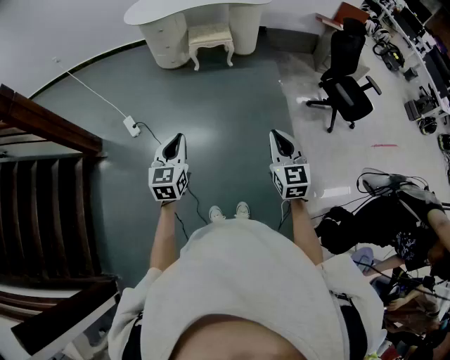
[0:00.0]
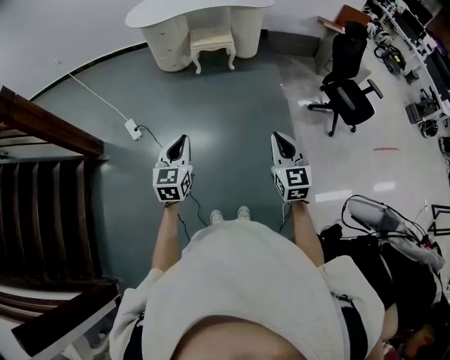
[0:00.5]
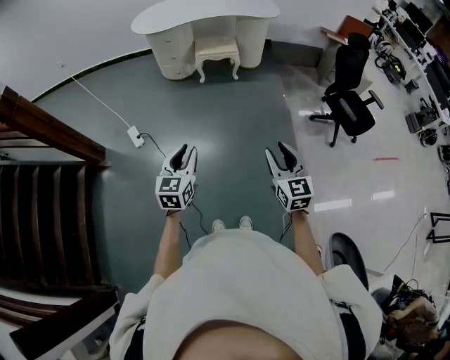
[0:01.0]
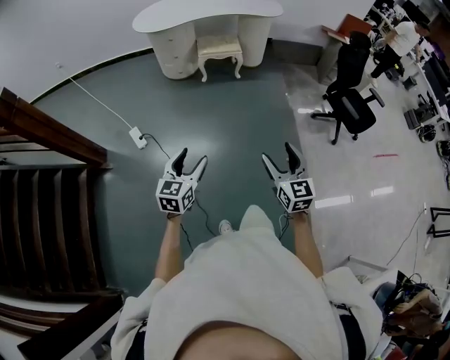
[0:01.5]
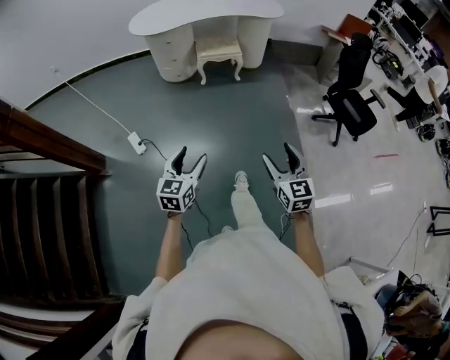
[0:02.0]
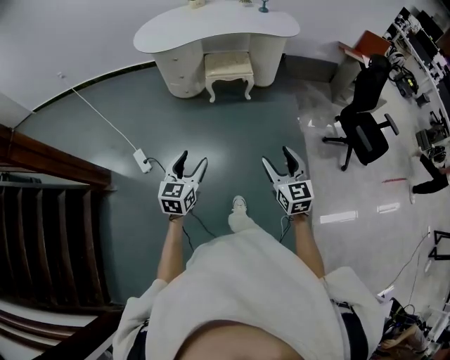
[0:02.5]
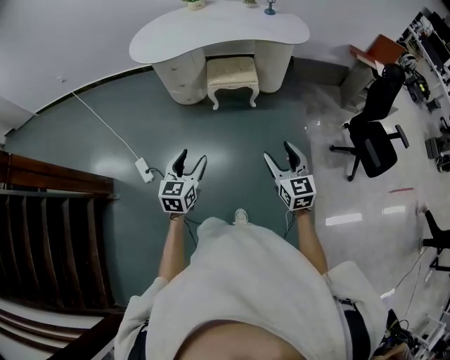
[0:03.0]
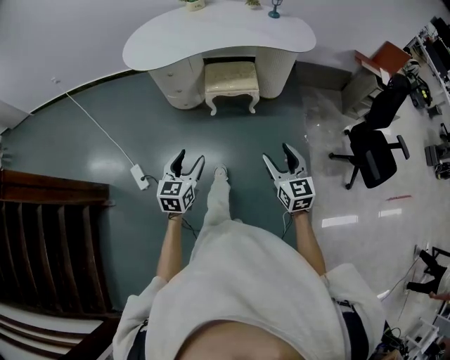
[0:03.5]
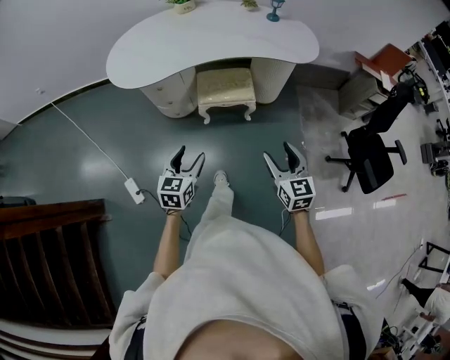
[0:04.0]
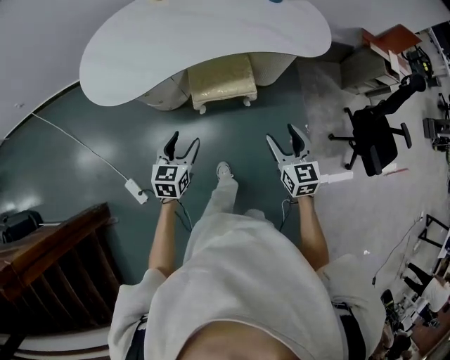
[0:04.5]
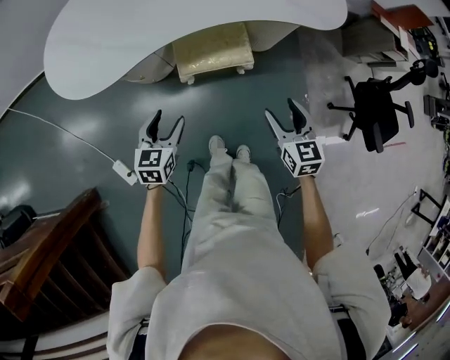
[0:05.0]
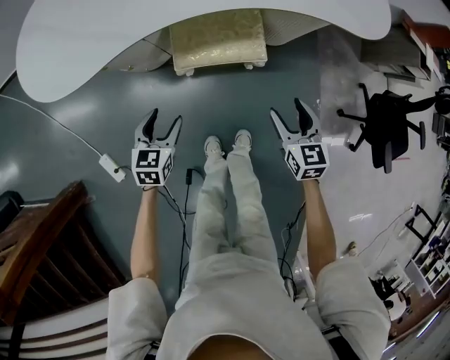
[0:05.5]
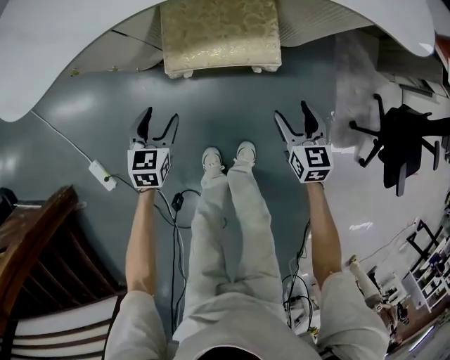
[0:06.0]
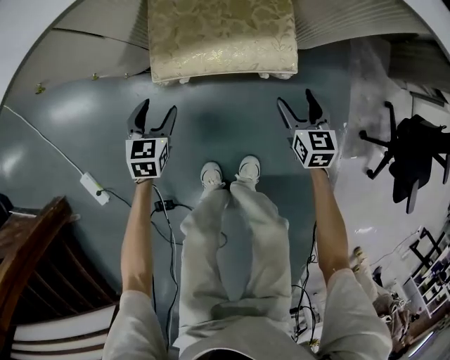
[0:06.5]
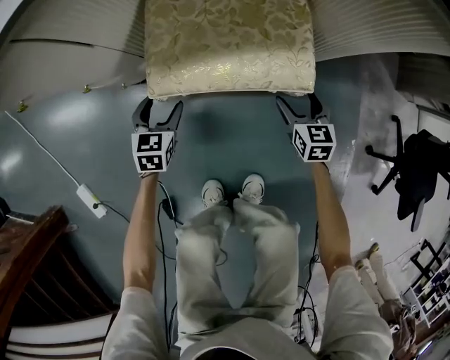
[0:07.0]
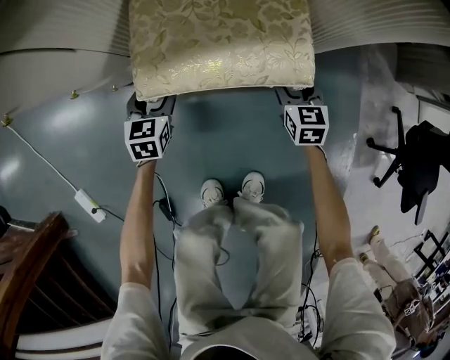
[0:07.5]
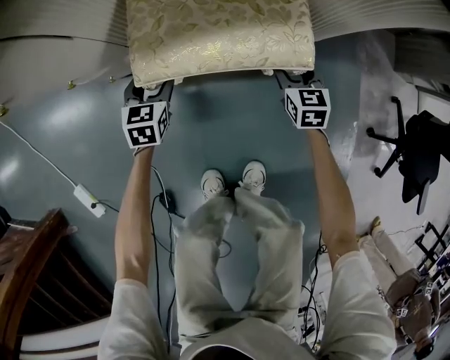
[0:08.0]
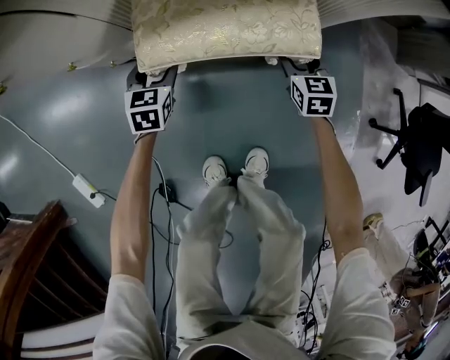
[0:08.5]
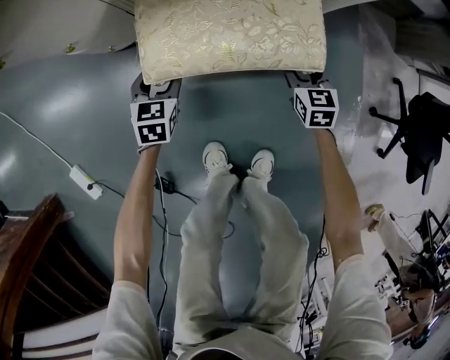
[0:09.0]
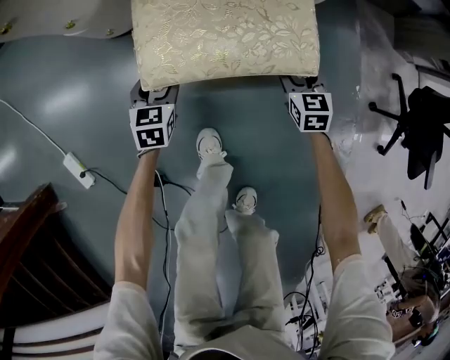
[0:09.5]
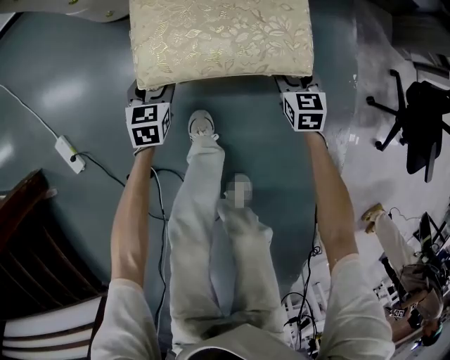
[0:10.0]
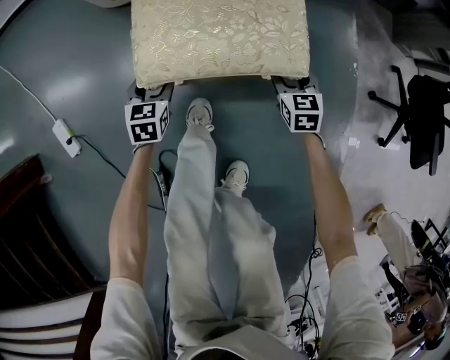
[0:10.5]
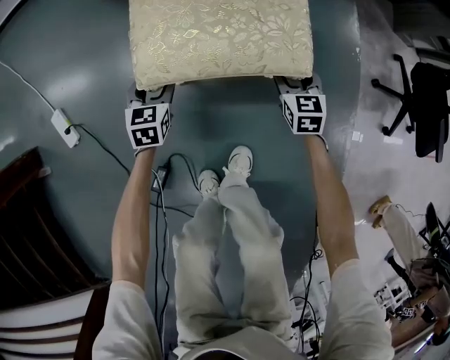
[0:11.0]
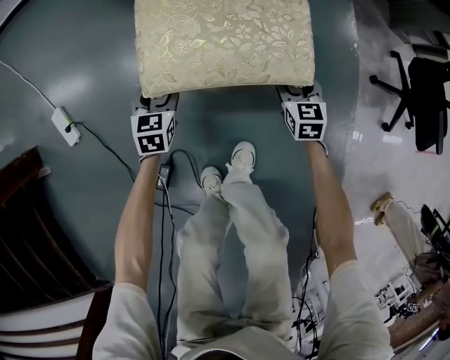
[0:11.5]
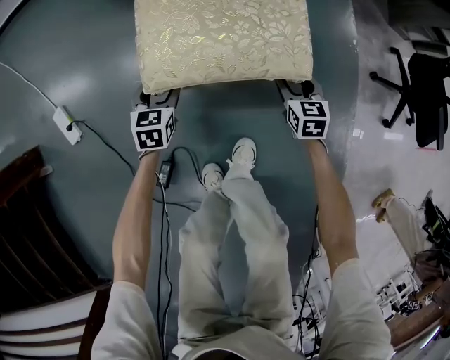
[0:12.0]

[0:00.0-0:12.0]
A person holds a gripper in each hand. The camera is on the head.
0:00.0 to 0:02.0: The left gripper moves forward and to the left, approximately 15 cm, and opens up. The right gripper heads to the left and forward, covering approximately 15 cm, and opens its fingers.
0:02.0 to 0:04.0: The pair of grippers is taken forward, approximately 70 cm.
0:04.0 to 0:06.0: The grippers both shift downward and forward by approximately 60 cm.
0:06.0 to 0:08.0: The grippers both shift downward and forward by roughly 30 cm.
0:08.0 to 0:10.0: Both grippers travel together backward, roughly 30 cm.
0:10.0 to 0:12.0: There are only small adjustments of the grippers.

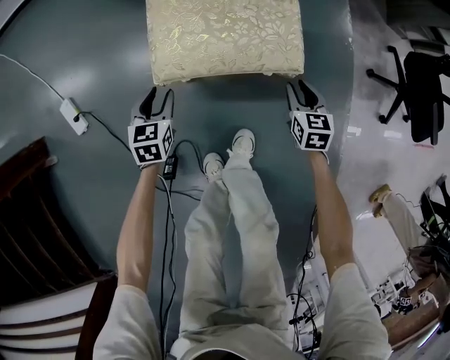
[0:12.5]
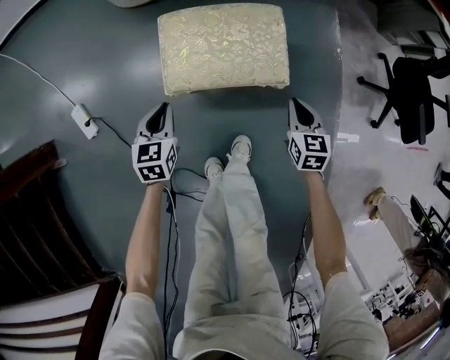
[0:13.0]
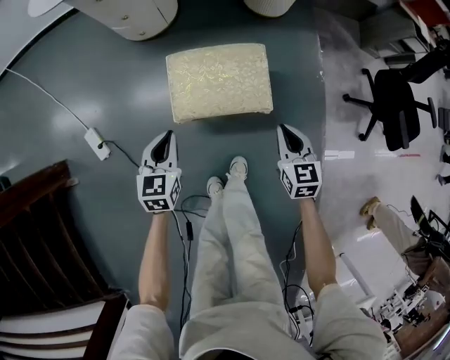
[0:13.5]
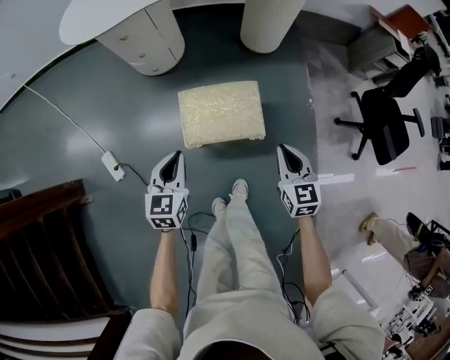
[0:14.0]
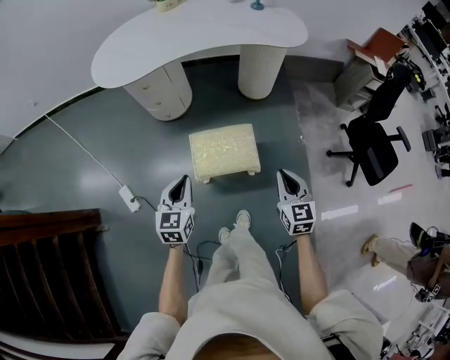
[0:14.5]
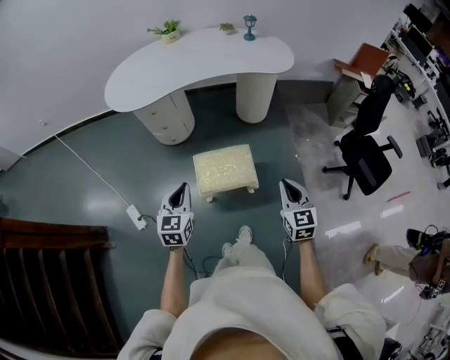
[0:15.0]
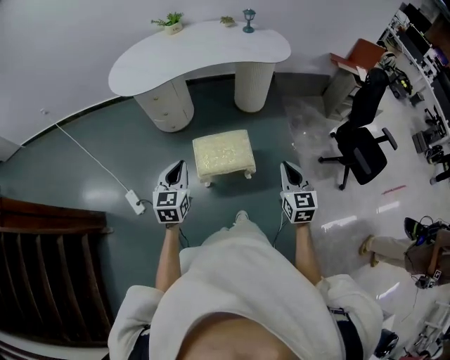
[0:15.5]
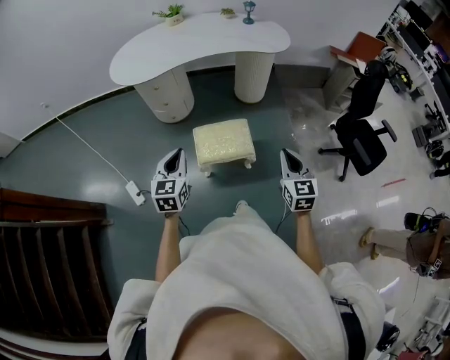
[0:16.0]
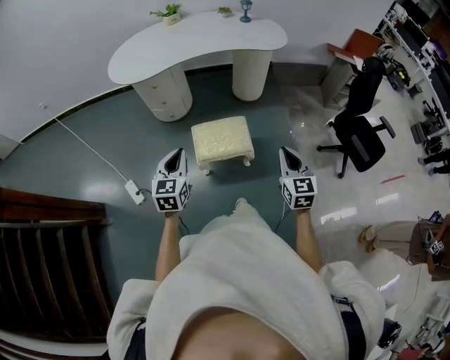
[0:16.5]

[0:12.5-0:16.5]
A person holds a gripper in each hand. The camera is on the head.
0:12.5 to 0:14.5: The grippers both shift upward by roughly 50 cm. The right gripper swivels about 20 degrees, while the left gripper closes its fingers.
0:14.5 to 0:16.5: Both grippers travel together upward and backward, some 15 cm.

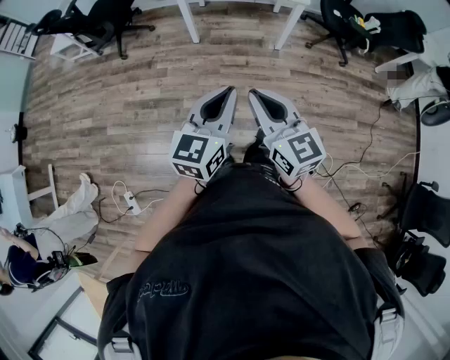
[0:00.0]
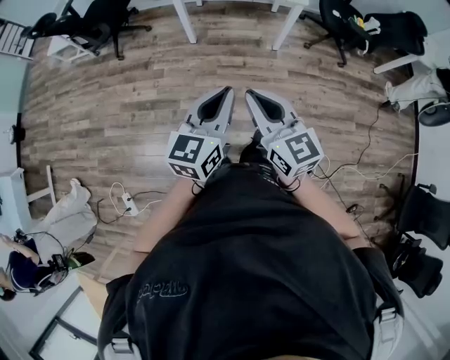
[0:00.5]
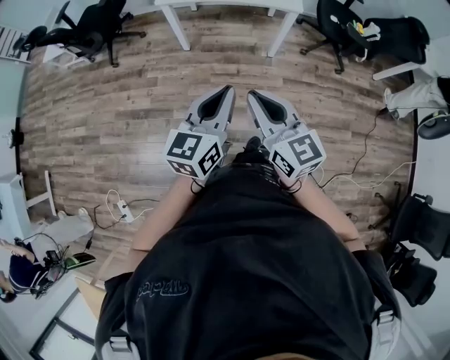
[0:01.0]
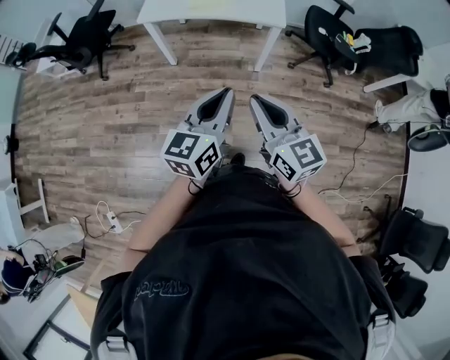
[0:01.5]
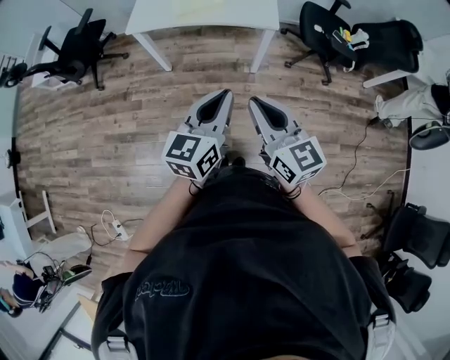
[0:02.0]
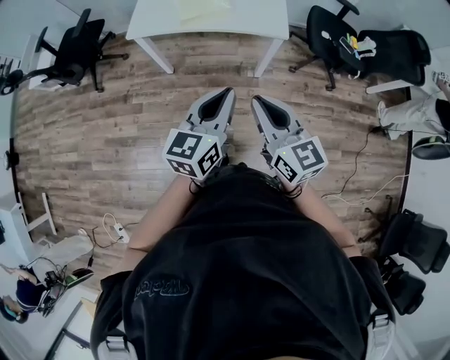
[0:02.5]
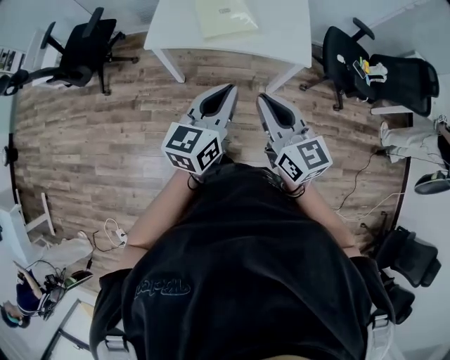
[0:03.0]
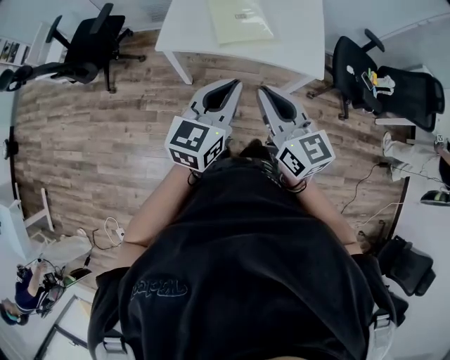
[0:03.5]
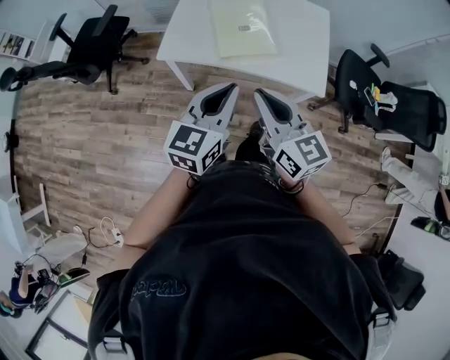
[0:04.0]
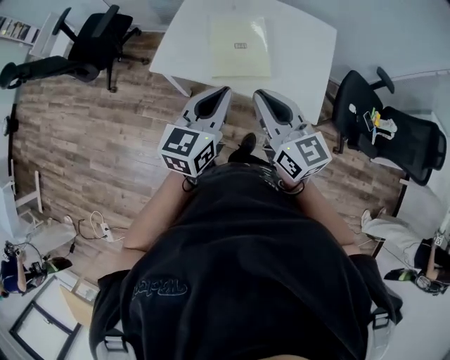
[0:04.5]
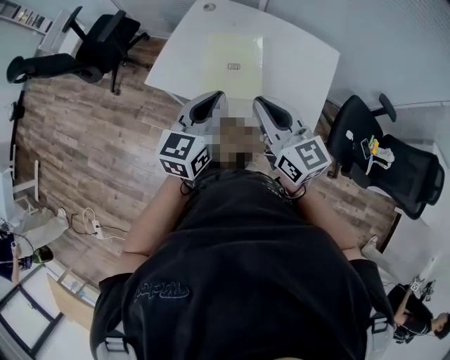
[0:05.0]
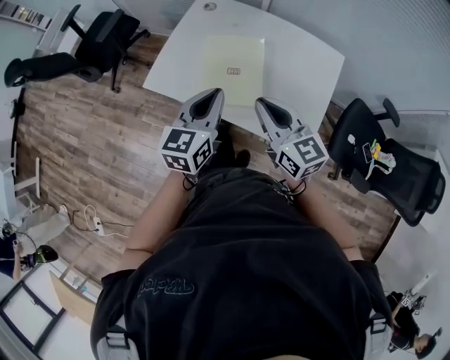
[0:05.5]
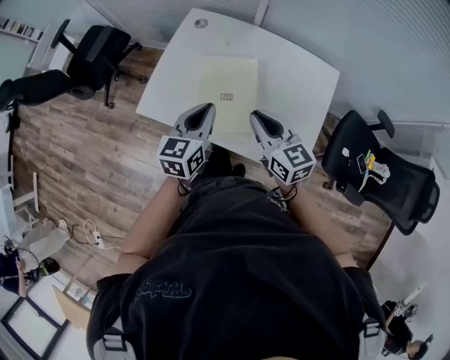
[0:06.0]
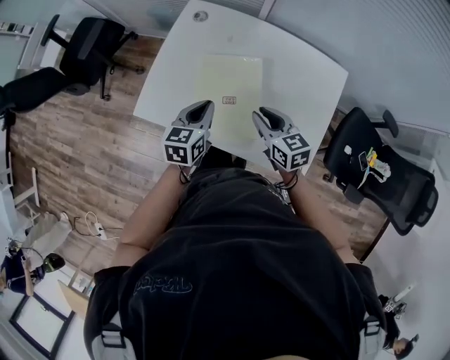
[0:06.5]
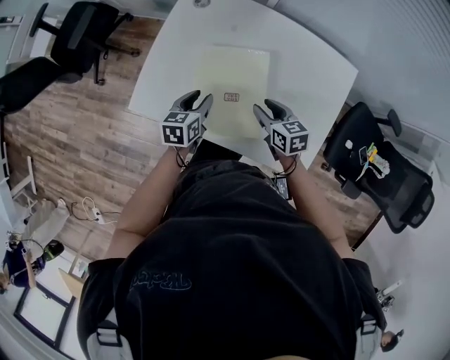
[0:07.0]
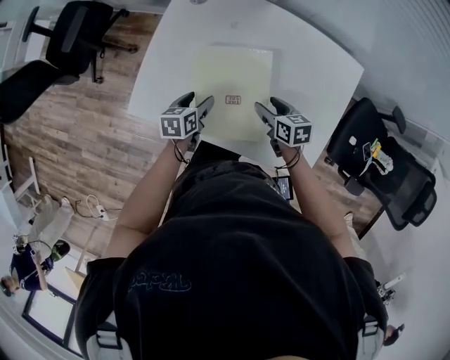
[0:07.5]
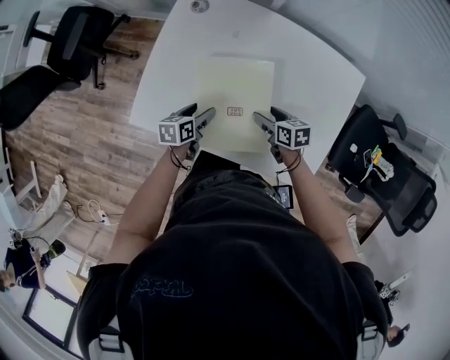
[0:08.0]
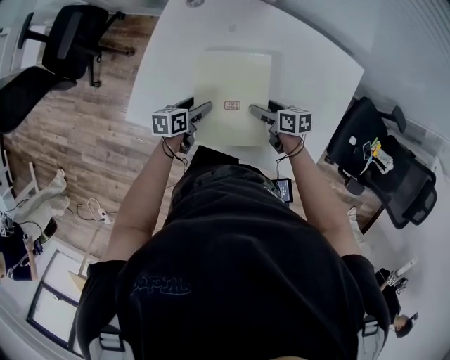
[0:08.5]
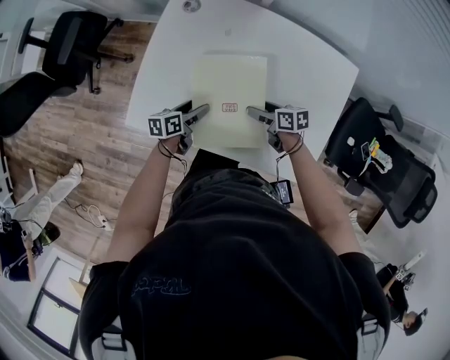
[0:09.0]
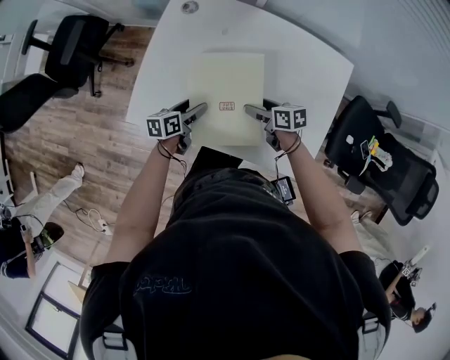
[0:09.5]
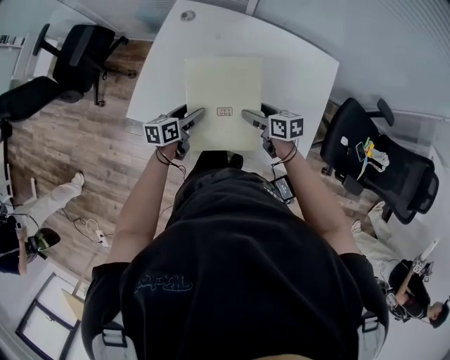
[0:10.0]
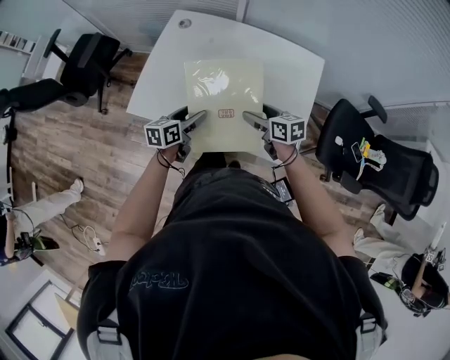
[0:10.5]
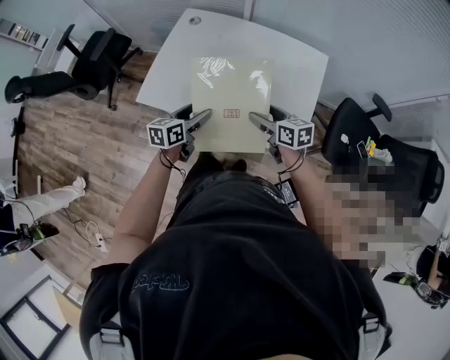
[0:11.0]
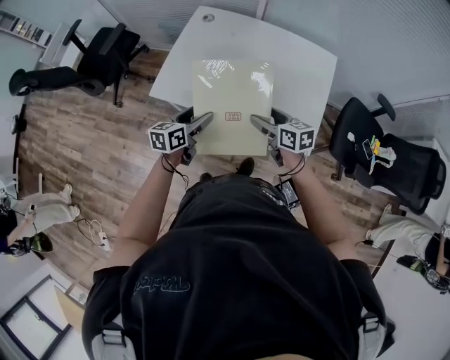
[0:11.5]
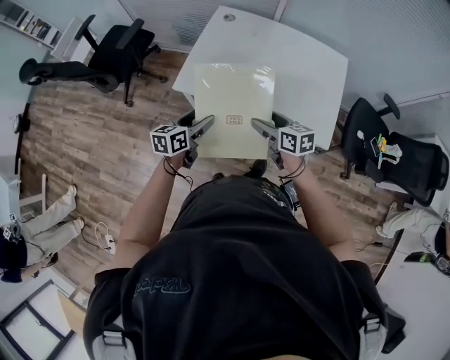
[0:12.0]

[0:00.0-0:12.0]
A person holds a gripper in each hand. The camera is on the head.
0:00.0 to 0:02.0: The grippers both shift forward and to the right by roughly 30 cm.
0:02.0 to 0:04.0: Both grippers travel together forward and to the left, approximately 35 cm.
0:04.0 to 0:06.0: The left gripper goes approximately 25 cm forward, and changes its angle by roughly 20 degrees. The right gripper goes approximately 30 cm forward and to the right.
0:06.0 to 0:08.0: Both grippers travel together downward, roughly 25 cm. The right gripper changes its angle by about 40 degrees, and opens, while the left gripper rotates some 40 degrees, and opens.
0:08.0 to 0:10.0: Both grippers move upward, about 5 cm.
0:10.0 to 0:12.0: Both grippers move backward, to the left and upward, some 25 cm.
